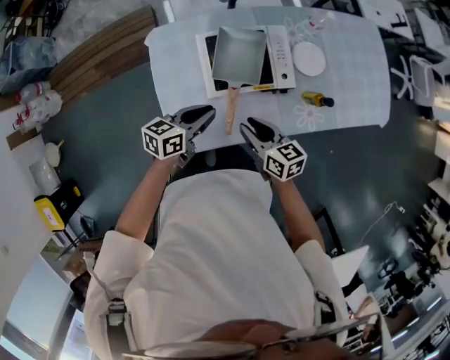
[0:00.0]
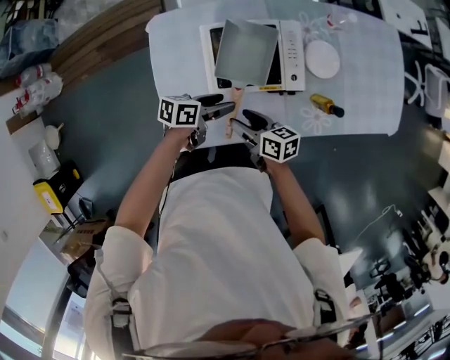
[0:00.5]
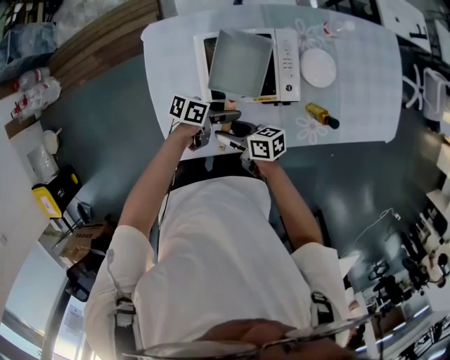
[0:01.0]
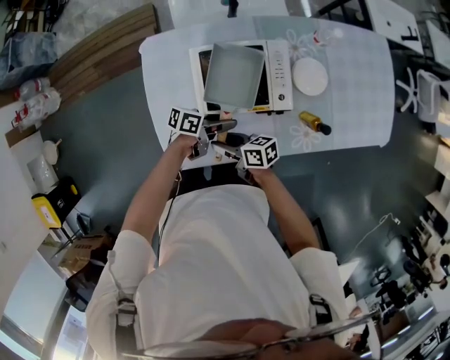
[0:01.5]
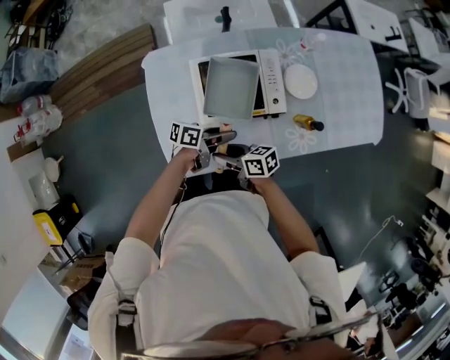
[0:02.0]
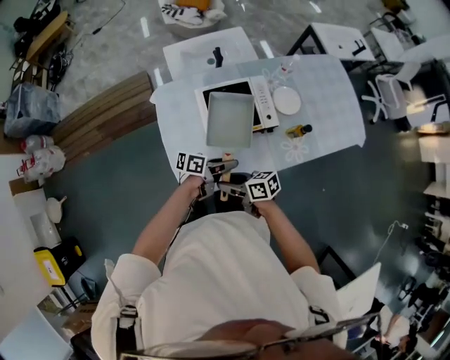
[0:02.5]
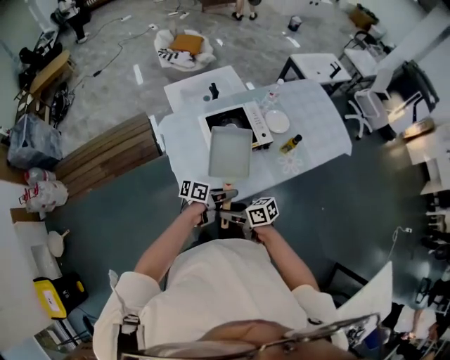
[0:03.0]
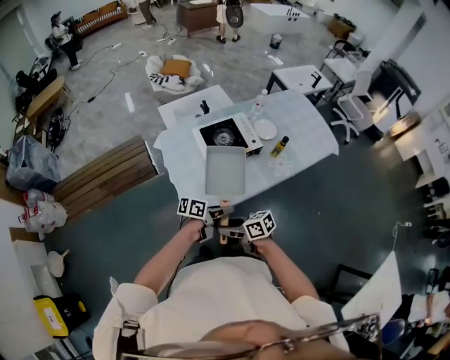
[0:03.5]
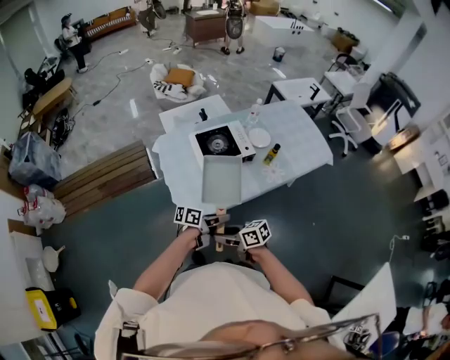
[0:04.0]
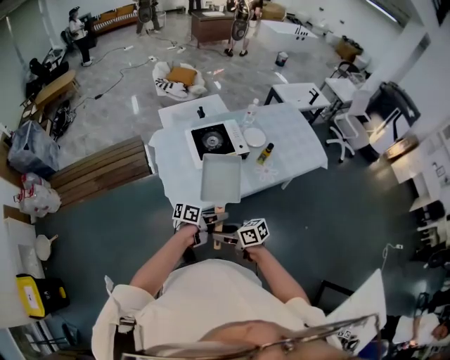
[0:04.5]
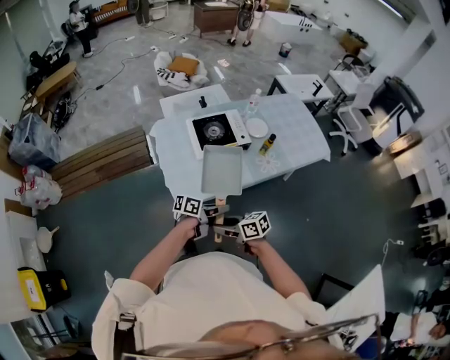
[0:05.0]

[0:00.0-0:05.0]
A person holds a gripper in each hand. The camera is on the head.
0:00.0 to 0:02.5: The left gripper goes downward and returns, roughly 15 cm each way, turns by approximately 30 degrees, and opens up. The right gripper travels downward and back again, approximately 10 cm each way, and turns by approximately 20 degrees.
0:02.5 to 0:05.0: The left gripper moves roughly 25 cm. Meanwhile the right gripper ends up about 25 cm from where it was.

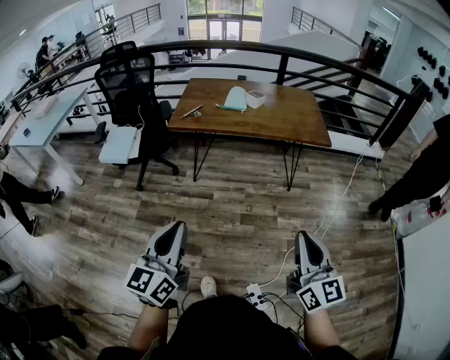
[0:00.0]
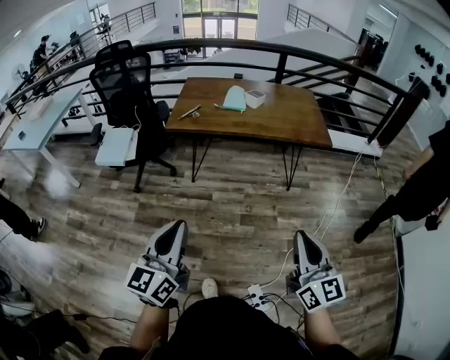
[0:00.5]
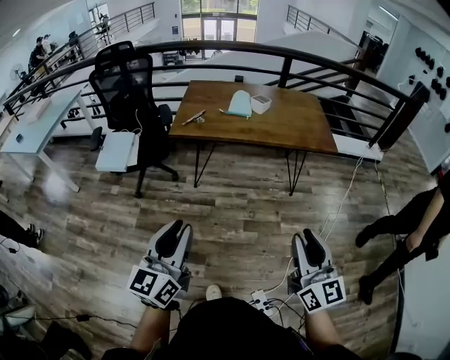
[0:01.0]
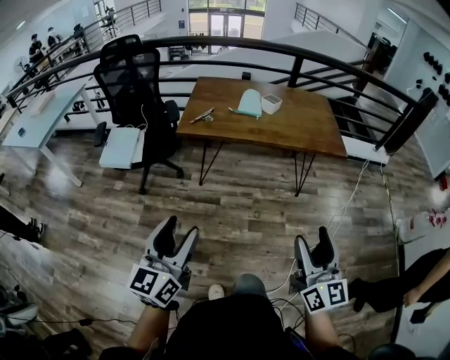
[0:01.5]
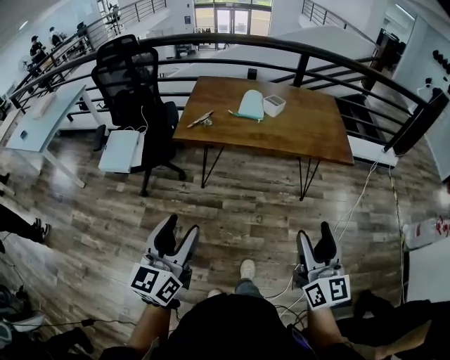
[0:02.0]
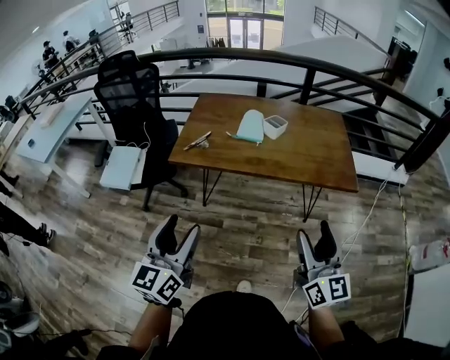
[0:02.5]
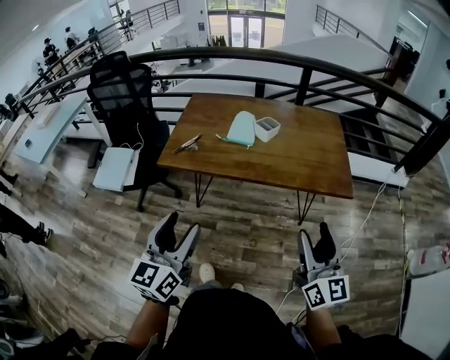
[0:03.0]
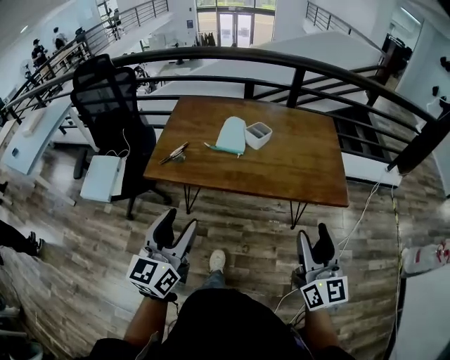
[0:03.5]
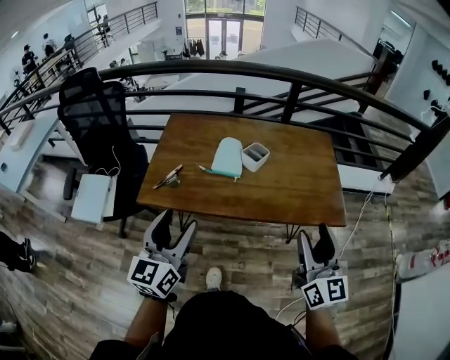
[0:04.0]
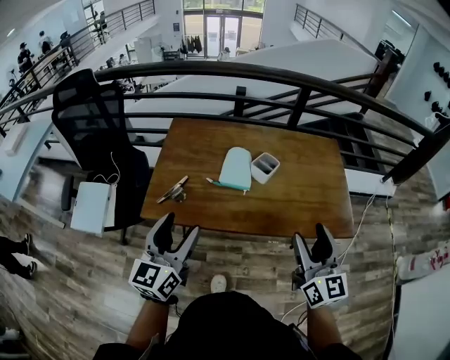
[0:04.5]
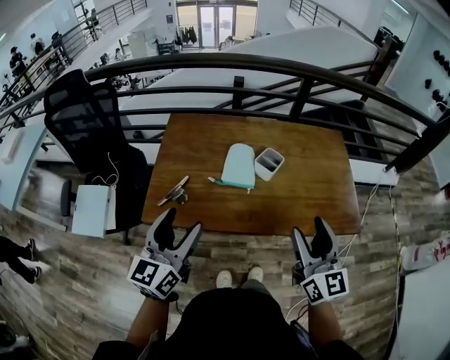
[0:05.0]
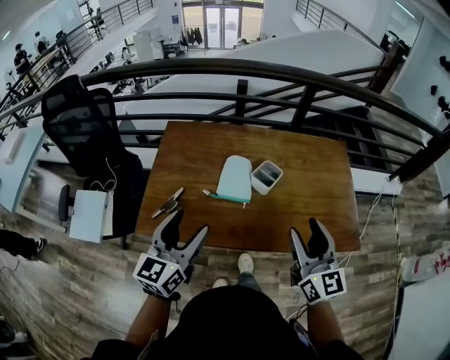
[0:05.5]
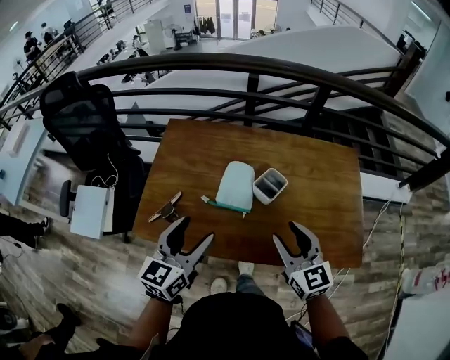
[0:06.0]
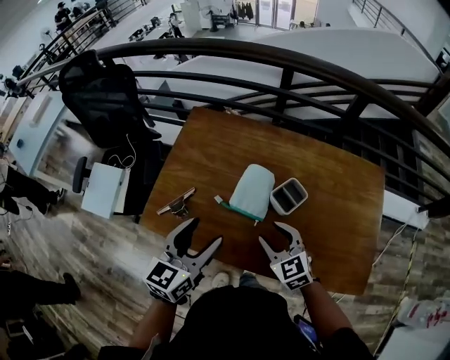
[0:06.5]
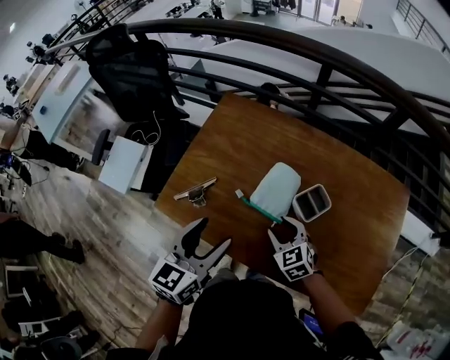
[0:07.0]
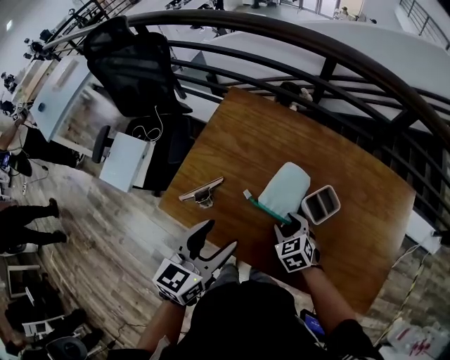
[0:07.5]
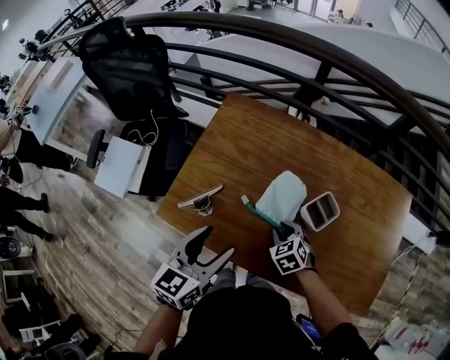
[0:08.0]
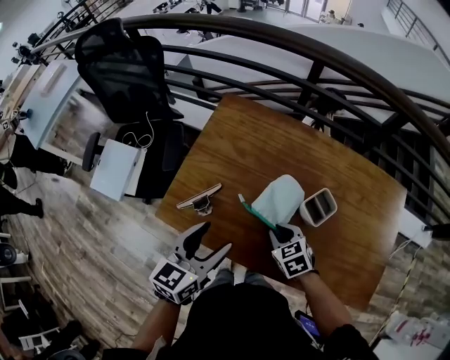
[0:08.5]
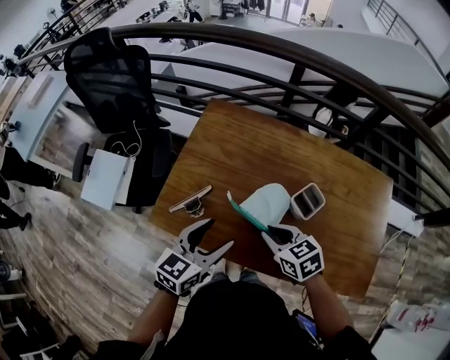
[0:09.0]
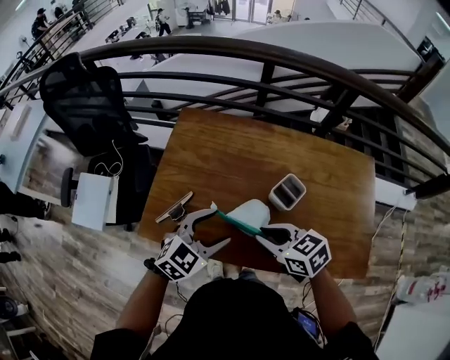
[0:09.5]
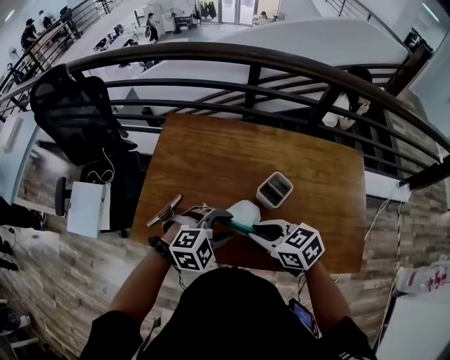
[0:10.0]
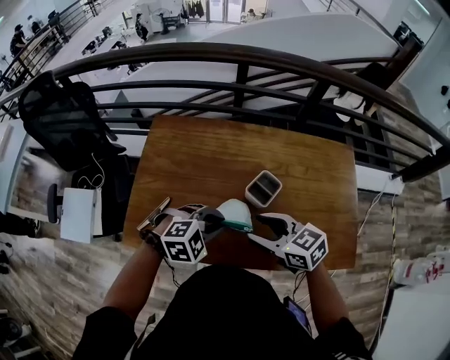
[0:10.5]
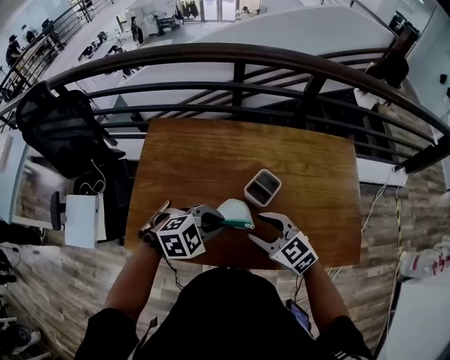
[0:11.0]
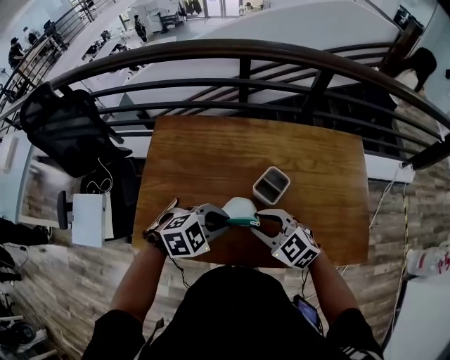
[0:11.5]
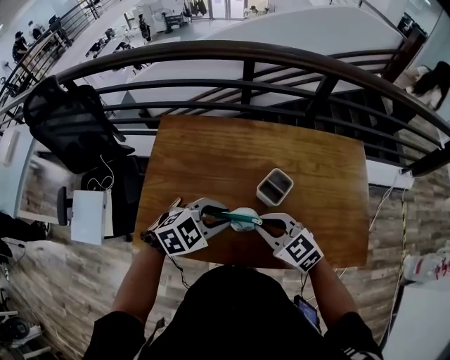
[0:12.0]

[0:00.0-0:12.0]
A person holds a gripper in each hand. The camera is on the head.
0:00.0 to 0:02.0: Both grippers travel together forward, some 20 cm. The left gripper opens; the right gripper opens up.
0:02.0 to 0:04.0: Both grippers move forward, roughly 35 cm.
0:04.0 to 0:06.0: The right gripper goes approximately 25 cm forward and downward, and changes its angle by some 30 degrees. Meanwhile the left gripper shifts some 20 cm forward.
0:06.0 to 0:08.0: The left gripper shifts by roughly 5 cm. The right gripper moves downward and forward, about 25 cm, tilts its fingers about 40 degrees downward, and closes its fingers.
0:08.0 to 0:10.0: The left gripper ends up some 15 cm from where it was, and twists approximately 70 degrees clockwise, seen from behind. Meanwhile the right gripper is displaced upward by approximately 15 cm, and rotates some 30 degrees.
0:10.0 to 0:12.0: The right gripper turns by about 20 degrees, and opens, then closes again.

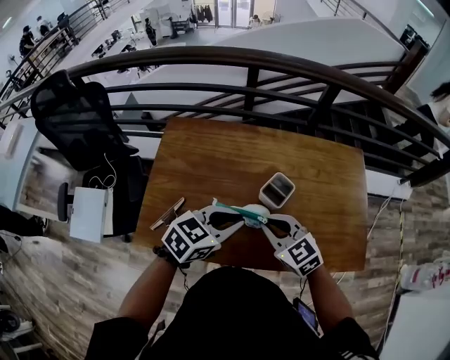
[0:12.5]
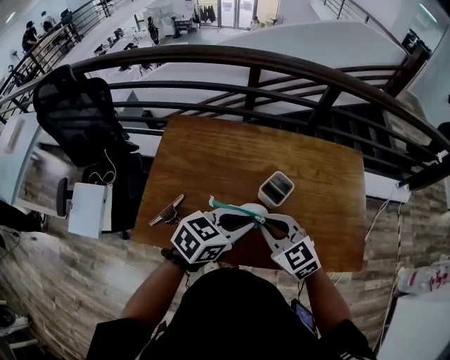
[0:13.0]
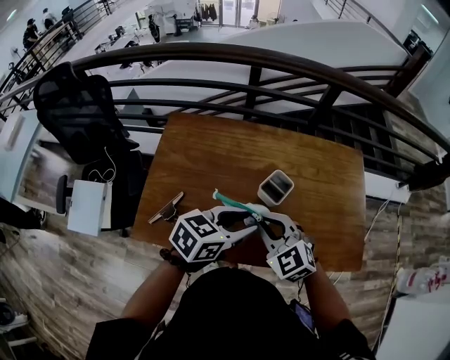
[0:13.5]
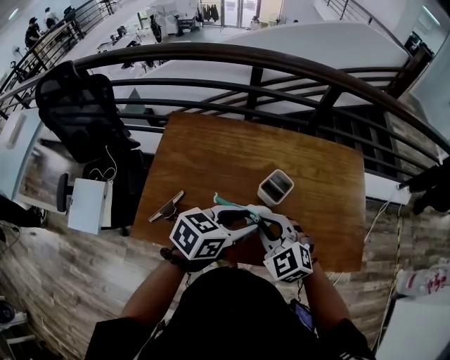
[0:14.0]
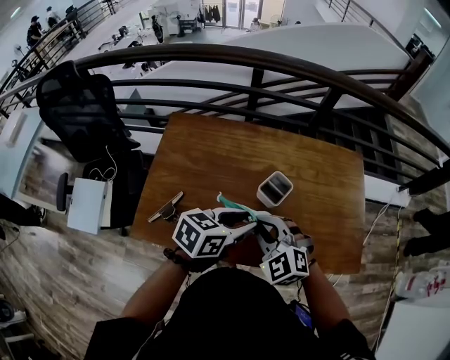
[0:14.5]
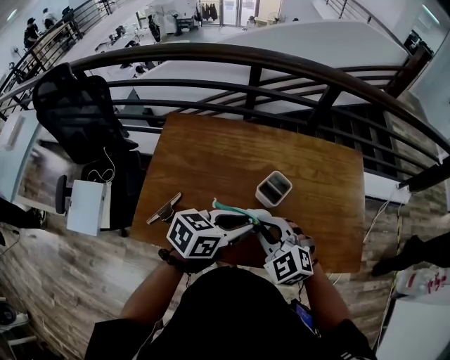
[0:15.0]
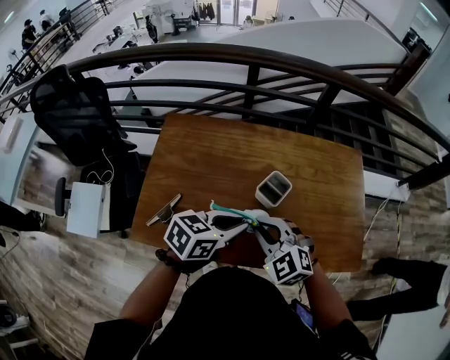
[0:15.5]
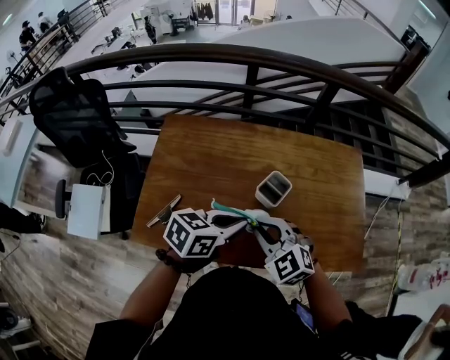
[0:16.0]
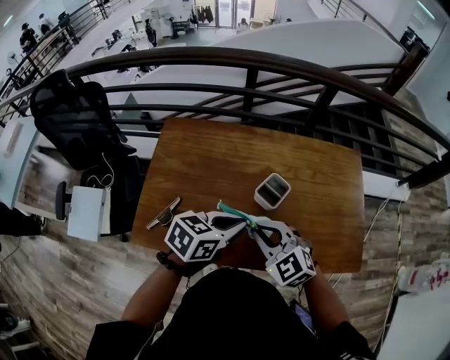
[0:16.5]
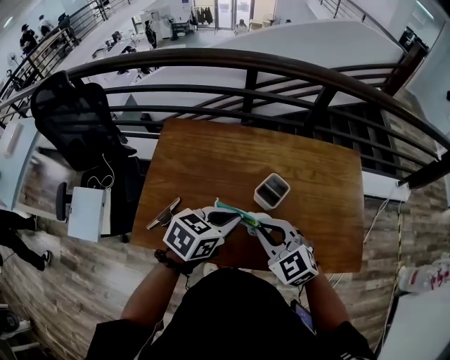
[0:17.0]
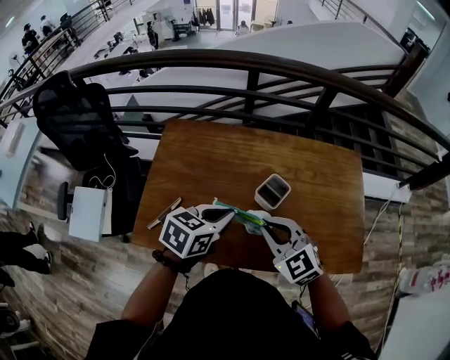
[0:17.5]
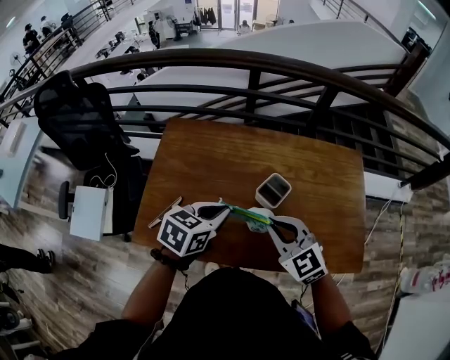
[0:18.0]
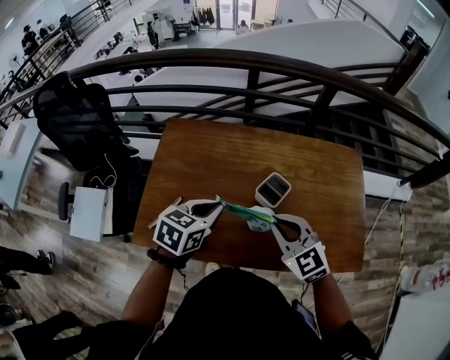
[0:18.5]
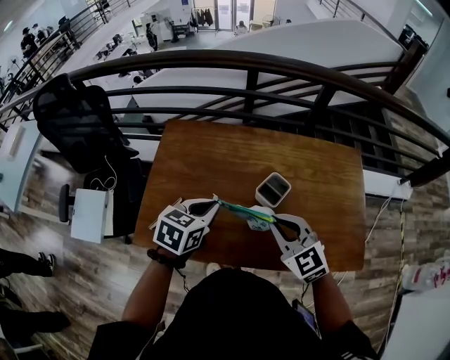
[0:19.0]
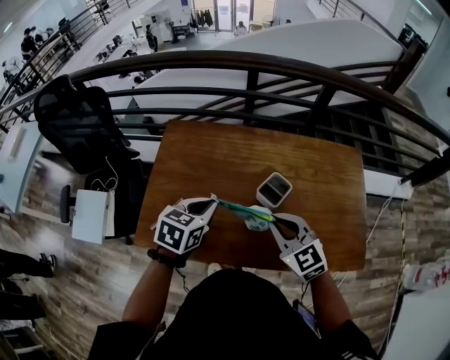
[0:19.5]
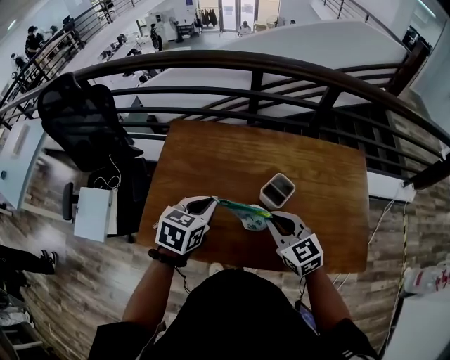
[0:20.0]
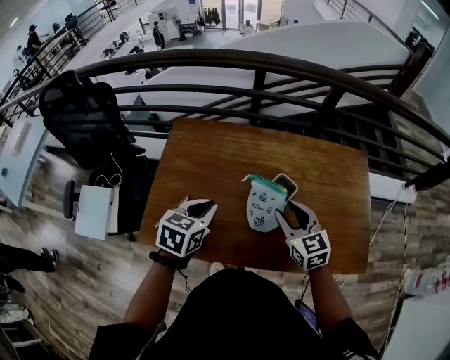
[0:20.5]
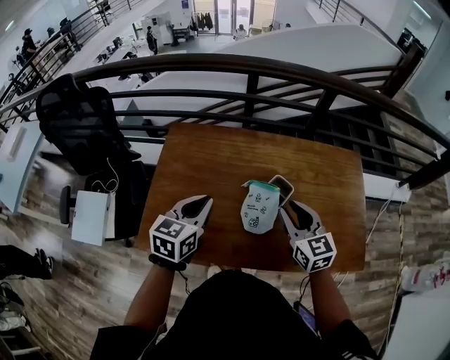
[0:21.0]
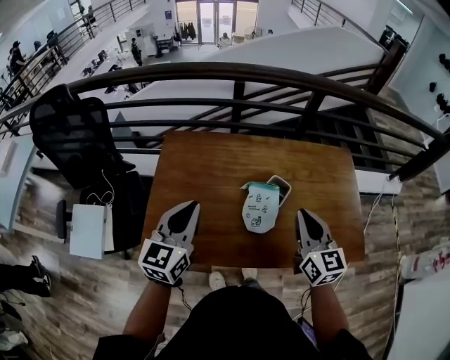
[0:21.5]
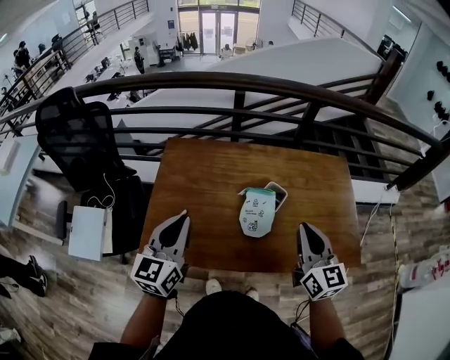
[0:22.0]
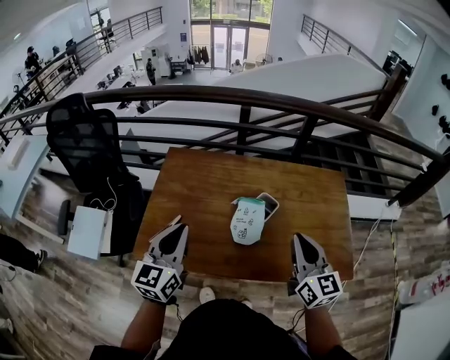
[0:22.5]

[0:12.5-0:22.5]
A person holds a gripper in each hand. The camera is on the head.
0:12.5 to 0:14.5: The right gripper swivels approximately 30 degrees.
0:14.5 to 0:16.5: The left gripper closes its fingers.
0:16.5 to 0:18.5: The left gripper moves to the left, approximately 5 cm.
0:18.5 to 0:20.5: The right gripper moves some 5 cm, rotates some 20 degrees, and opens.
0:20.5 to 0:22.5: The right gripper goes some 15 cm upward and backward, changes its angle by some 30 degrees, and closes. Meanwhile the left gripper moves upward, backward and to the left, approximately 15 cm, and tips its fingers upward by approximately 30 degrees.
